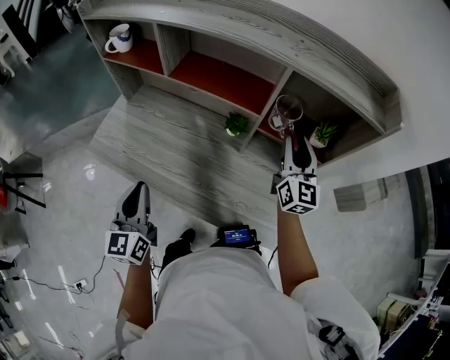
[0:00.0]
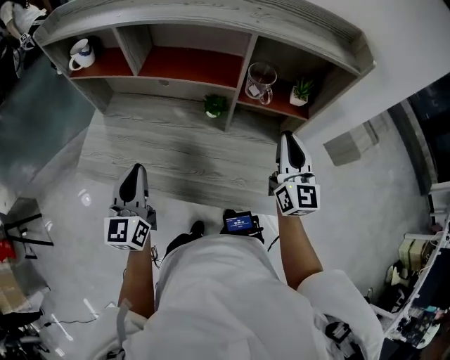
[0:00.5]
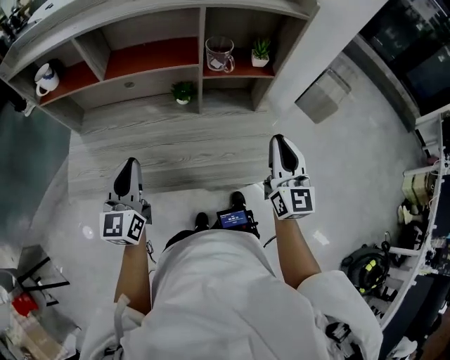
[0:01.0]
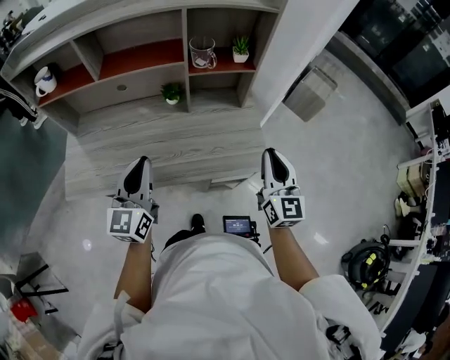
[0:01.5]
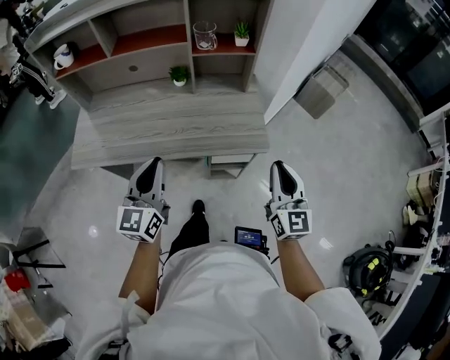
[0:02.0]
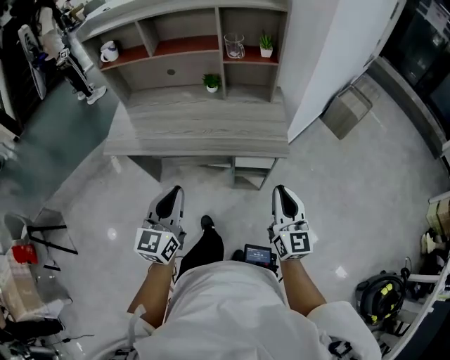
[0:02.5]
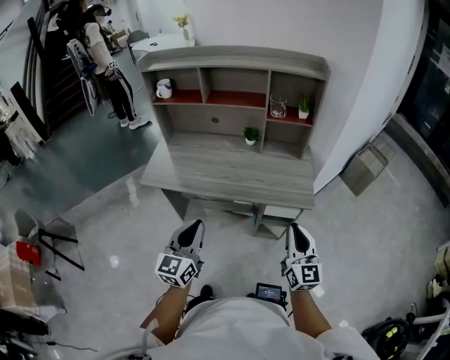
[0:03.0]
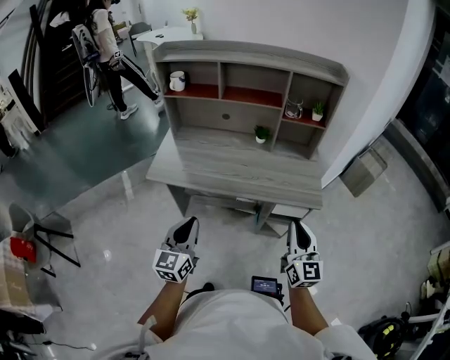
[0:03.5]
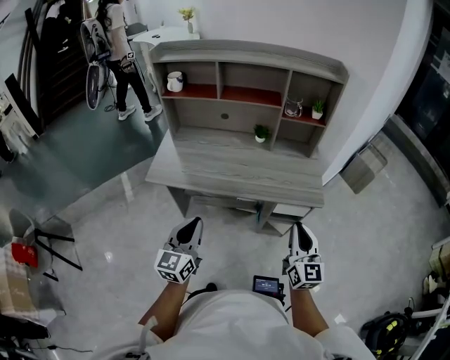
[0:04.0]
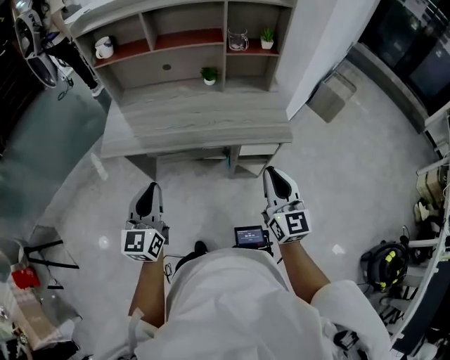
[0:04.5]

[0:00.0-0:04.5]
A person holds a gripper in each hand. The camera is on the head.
0:00.0 to 0:02.0: The left gripper changes place by approximately 20 cm, and swivels about 30 degrees, while the right gripper moves approximately 40 cm, and closes its fingers.
0:02.0 to 0:04.5: Both grippers move to the left and backward, some 20 cm.

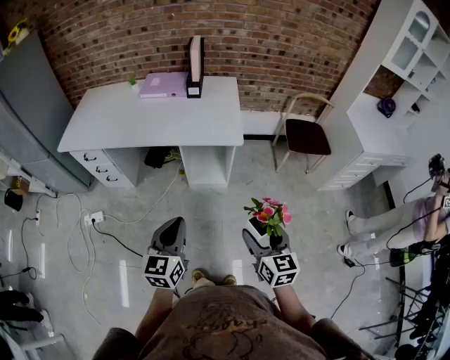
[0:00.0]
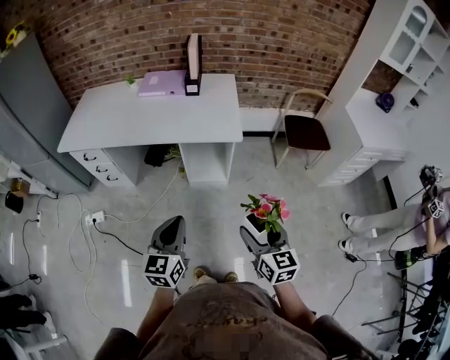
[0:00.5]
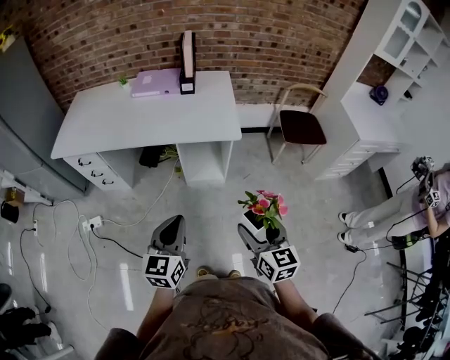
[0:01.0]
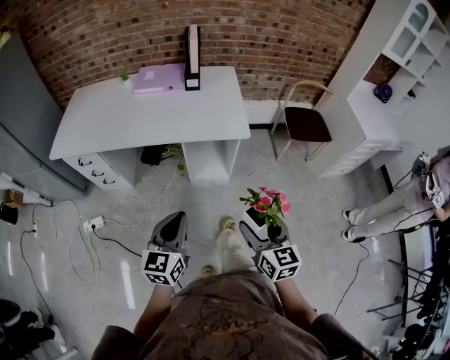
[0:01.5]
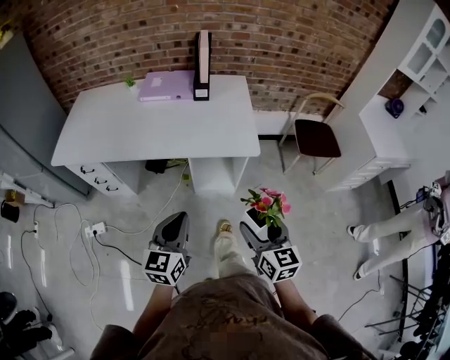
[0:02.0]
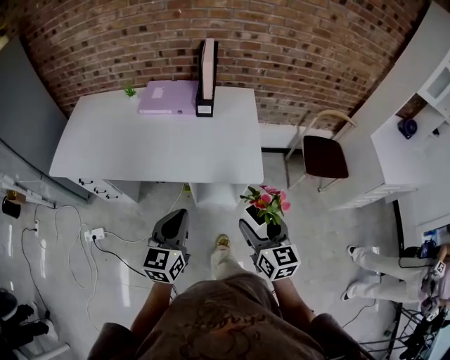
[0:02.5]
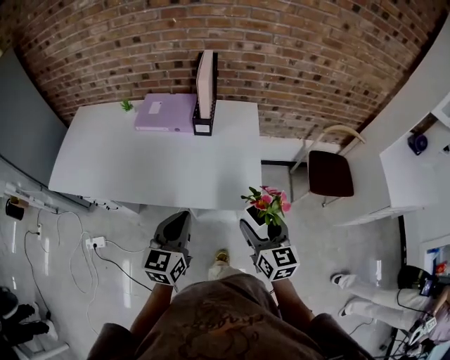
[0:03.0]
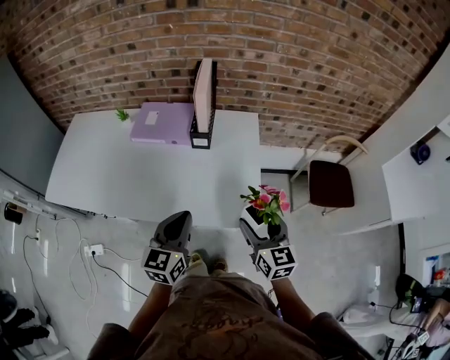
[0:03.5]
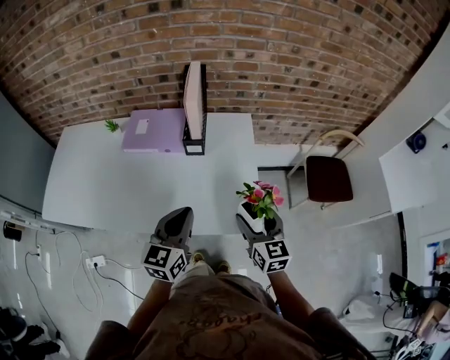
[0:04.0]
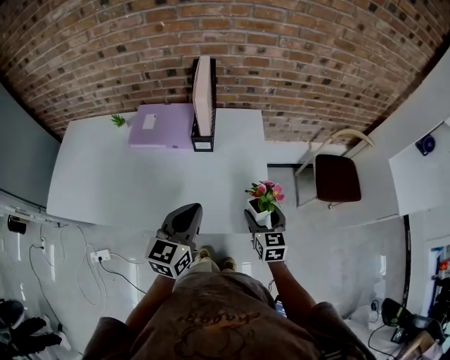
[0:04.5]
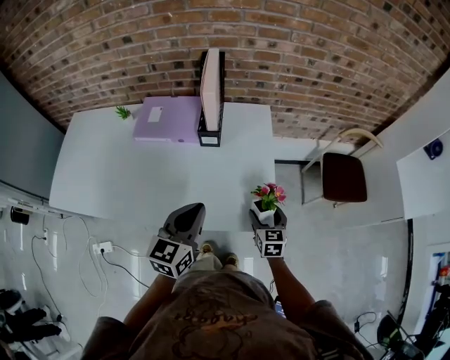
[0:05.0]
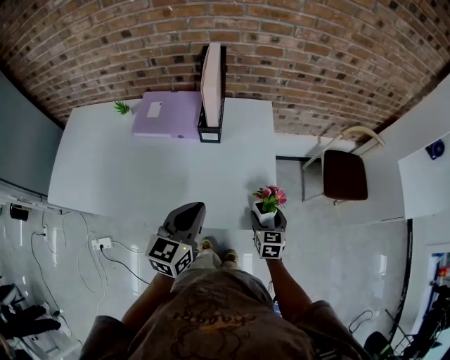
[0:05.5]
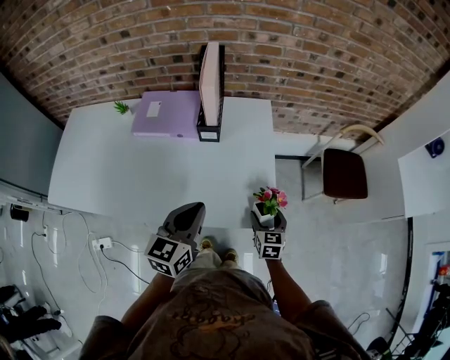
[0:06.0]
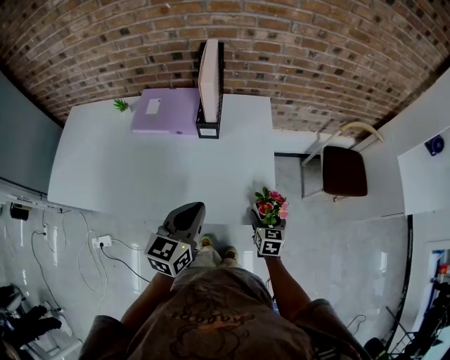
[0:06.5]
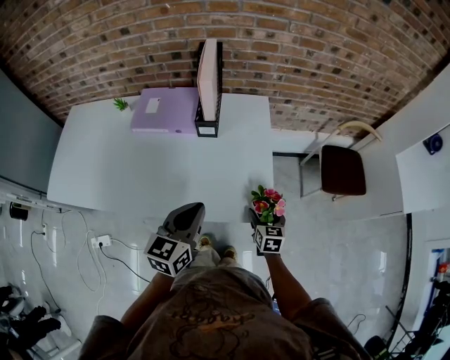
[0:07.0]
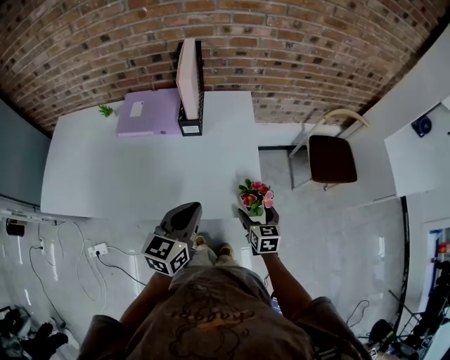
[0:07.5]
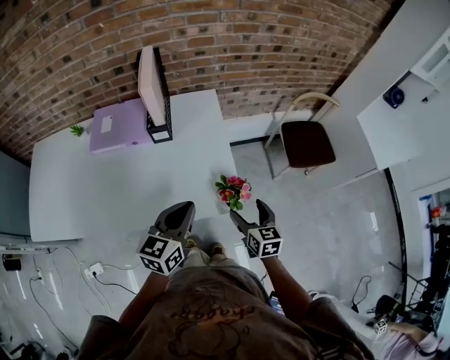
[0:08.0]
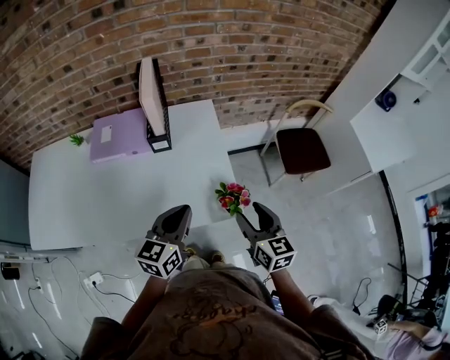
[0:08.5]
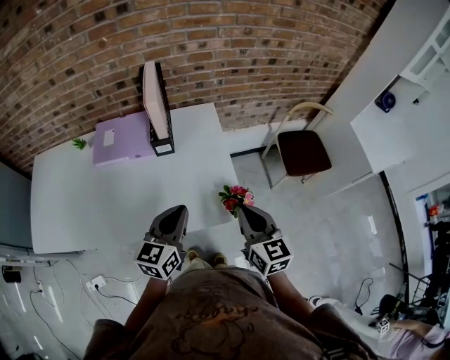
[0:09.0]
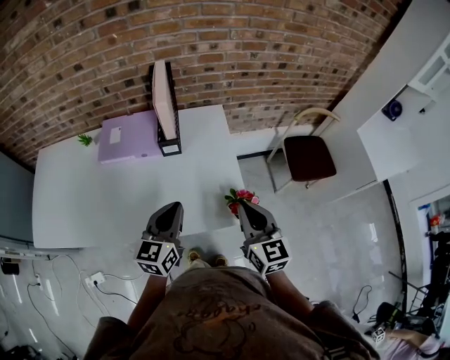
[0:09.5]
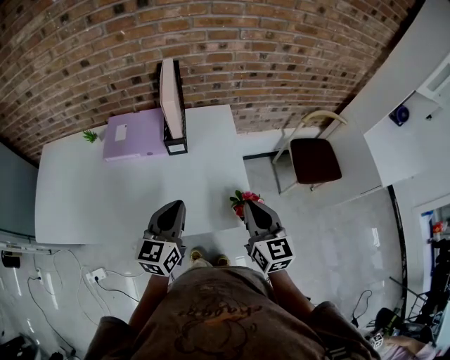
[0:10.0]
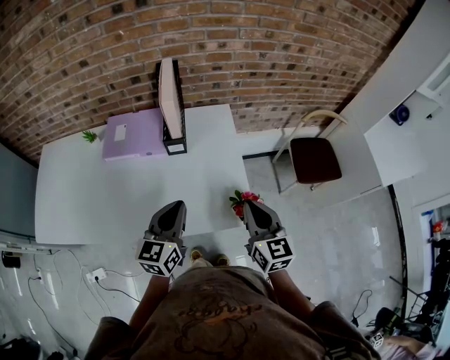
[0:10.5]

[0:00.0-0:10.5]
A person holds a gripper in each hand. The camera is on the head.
0:00.0 to 0:02.0: Both grippers move forward and to the left, some 15 cm.
0:02.0 to 0:04.0: The two grippers go approximately 40 cm forward.
0:04.0 to 0:06.5: The right gripper travels downward by approximately 20 cm, and turns by about 20 degrees.
0:06.5 to 0:08.5: The left gripper shifts approximately 5 cm to the right, while the right gripper travels upward by approximately 20 cm.
0:08.5 to 0:10.5: The two grippers go roughly 5 cm to the left. The right gripper closes.

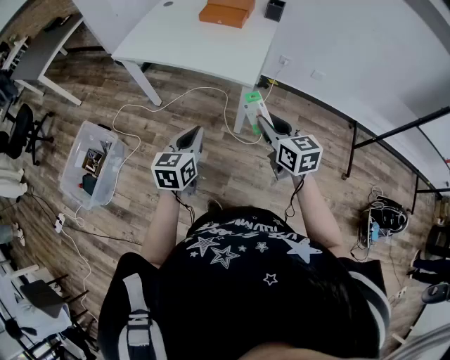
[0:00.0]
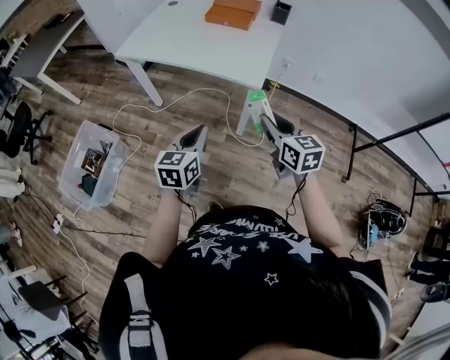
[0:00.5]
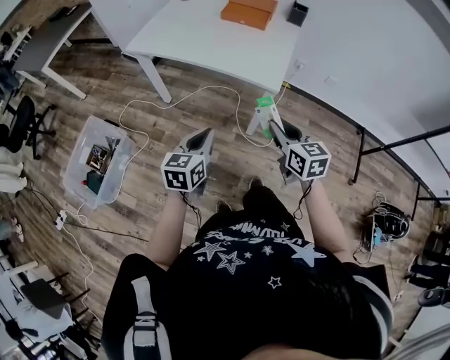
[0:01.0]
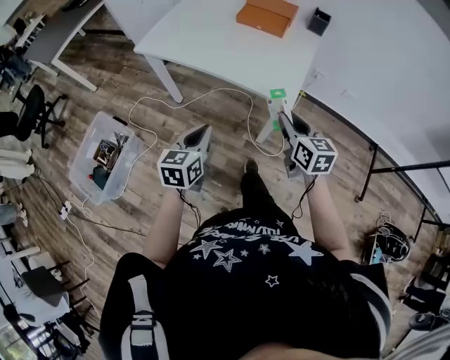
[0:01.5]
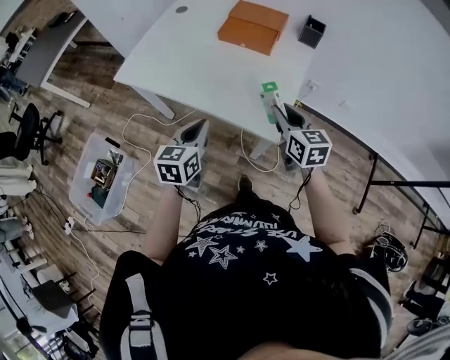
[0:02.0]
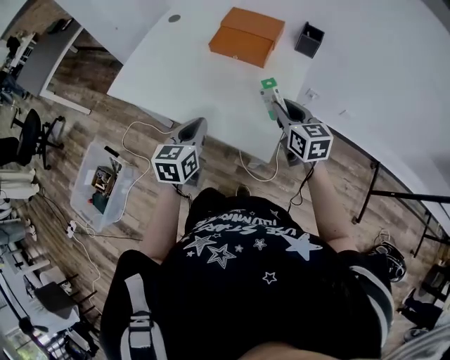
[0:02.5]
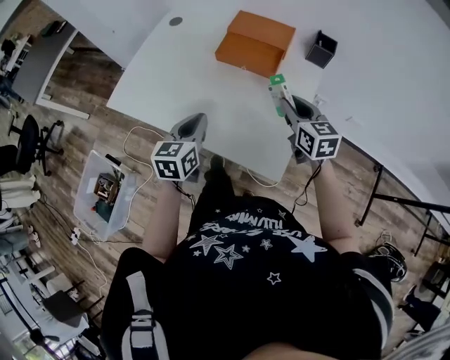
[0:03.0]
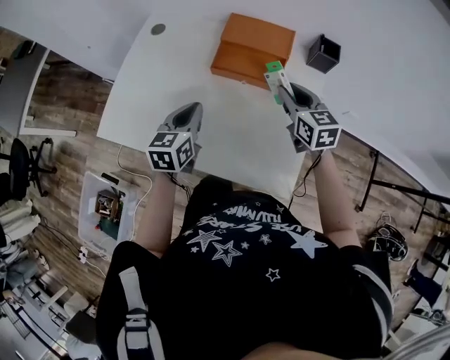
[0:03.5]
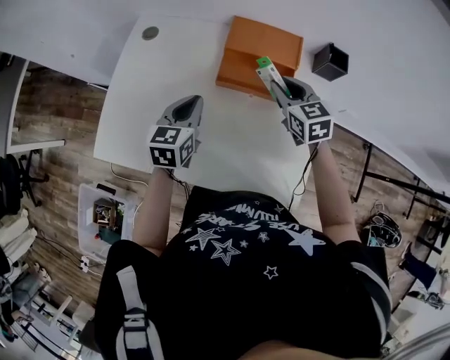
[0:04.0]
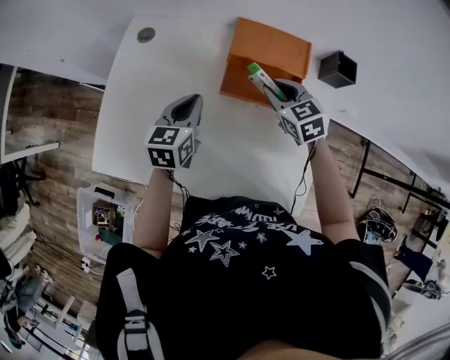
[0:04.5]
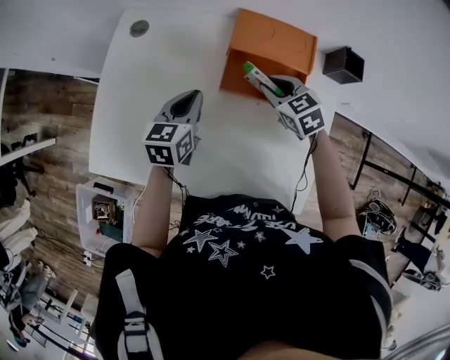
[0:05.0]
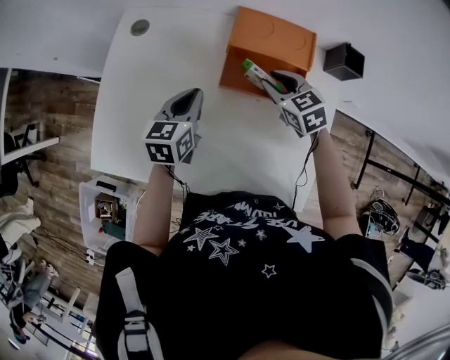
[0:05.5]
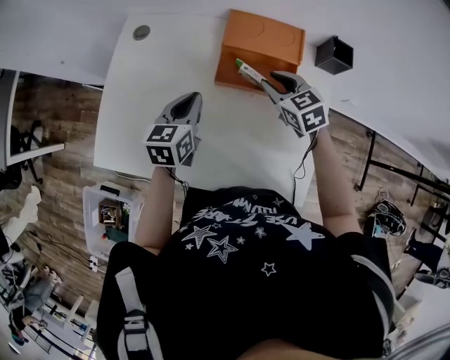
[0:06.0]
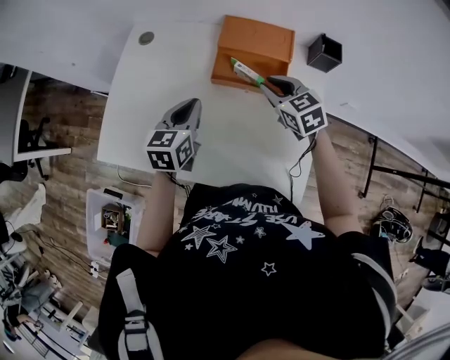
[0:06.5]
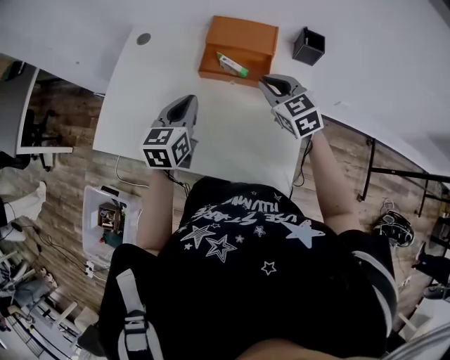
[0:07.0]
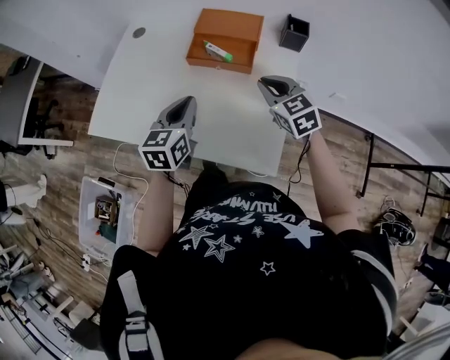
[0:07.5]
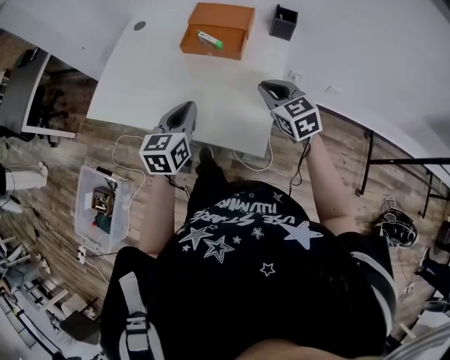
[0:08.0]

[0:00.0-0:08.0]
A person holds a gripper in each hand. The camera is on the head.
0:00.0 to 0:02.0: Both grippers move forward, some 40 cm.
0:02.0 to 0:04.0: The pair of grippers is taken forward, some 50 cm.
0:04.0 to 0:06.0: The left gripper reaches about 10 cm forward, then returns.
0:06.0 to 0:08.0: The grippers both shift backward and to the right by about 40 cm.

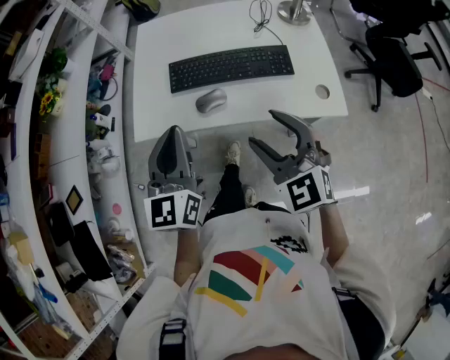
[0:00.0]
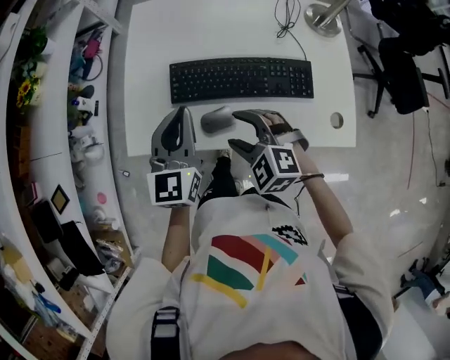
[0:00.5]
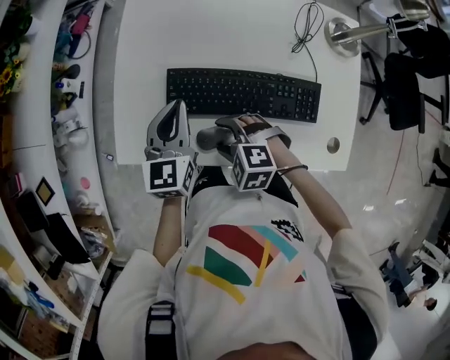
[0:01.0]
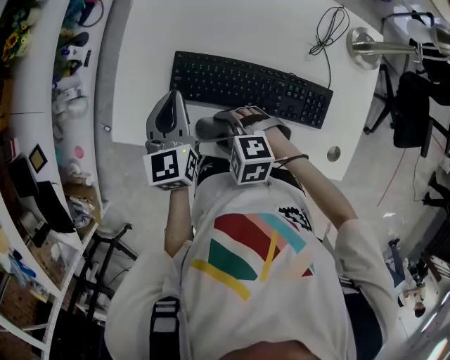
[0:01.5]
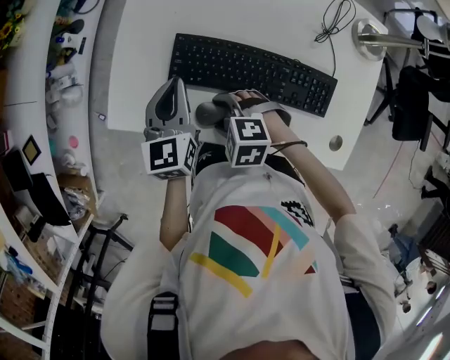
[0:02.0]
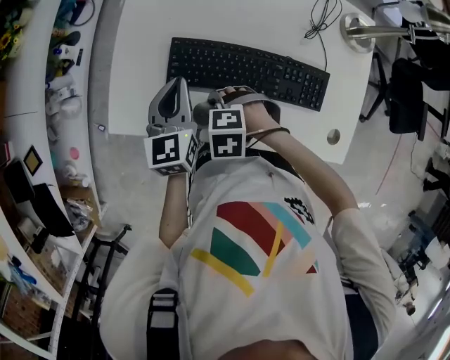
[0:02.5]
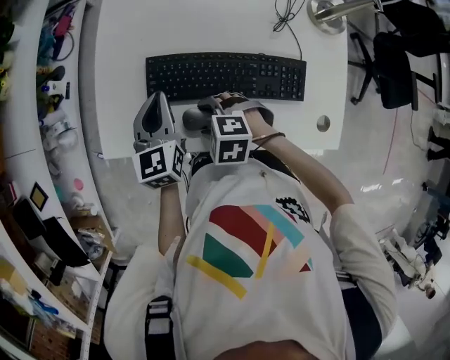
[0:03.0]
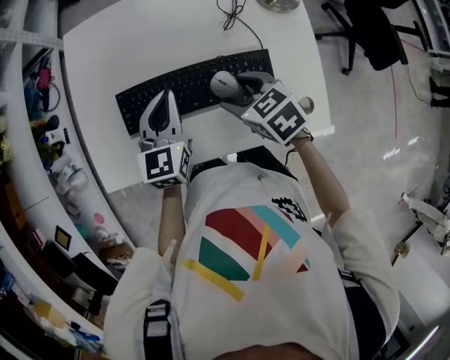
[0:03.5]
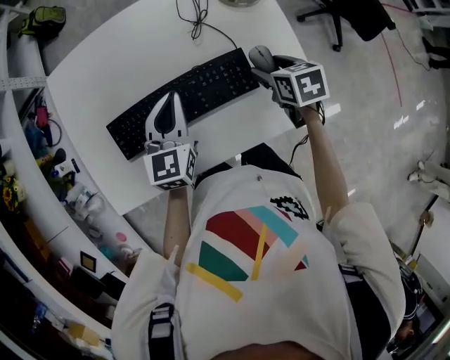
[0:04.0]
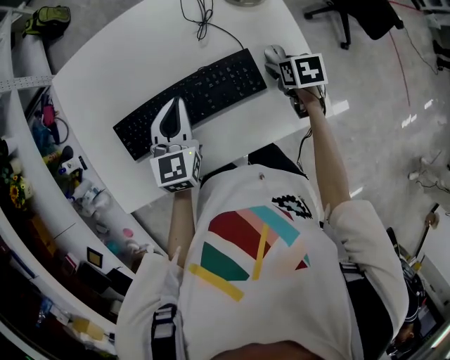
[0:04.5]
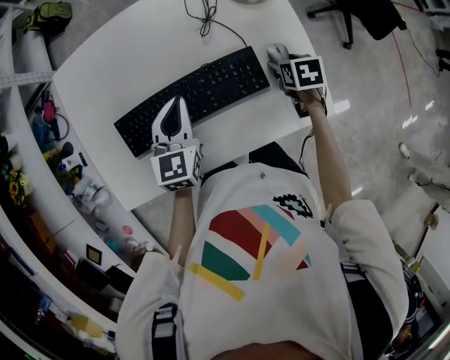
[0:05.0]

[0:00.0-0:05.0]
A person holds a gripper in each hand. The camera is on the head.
0:00.0 to 0:02.5: The left gripper shifts by about 30 cm, and turns by roughly 20 degrees. The right gripper moves downward, about 25 cm, and tips its fingers downward by roughly 60 degrees.
0:02.5 to 0:05.0: The left gripper ends up roughly 20 cm from where it was, and turns by roughly 30 degrees. Meanwhile the right gripper moves about 10 cm upward and comes back, and rotates around the line of its fingers by some 100 degrees, clockwise from behind.
